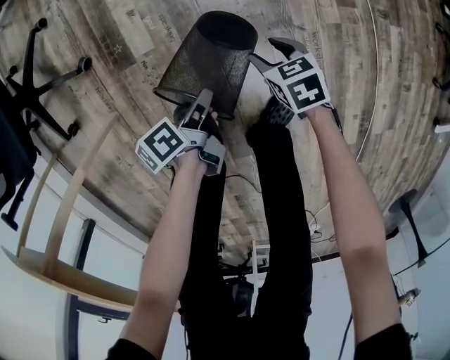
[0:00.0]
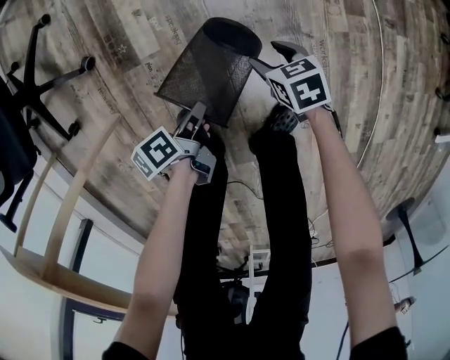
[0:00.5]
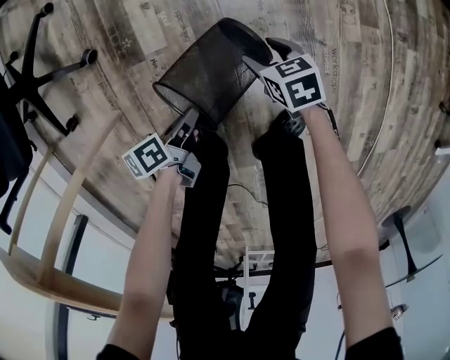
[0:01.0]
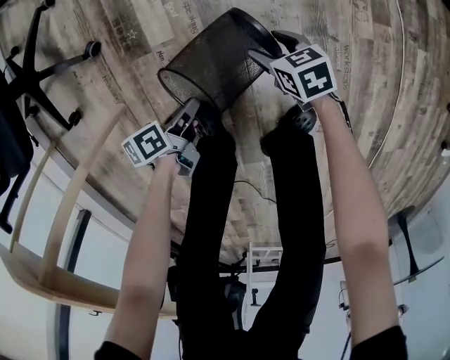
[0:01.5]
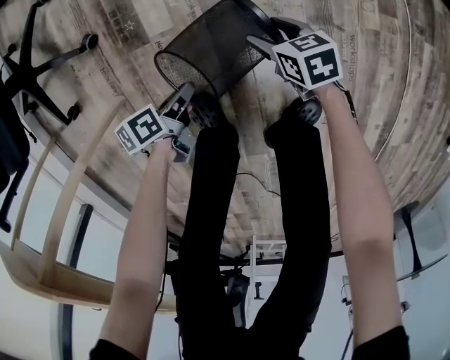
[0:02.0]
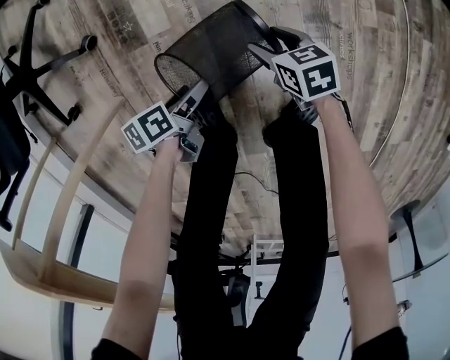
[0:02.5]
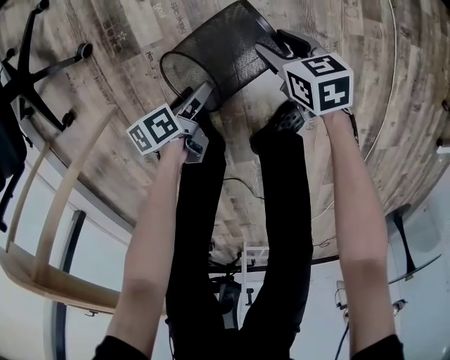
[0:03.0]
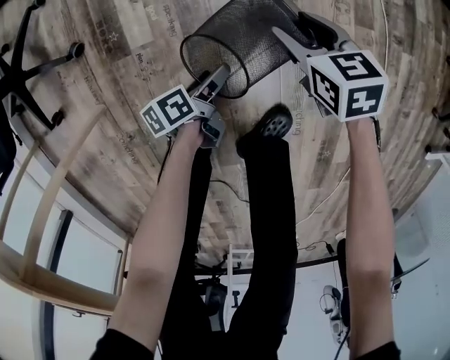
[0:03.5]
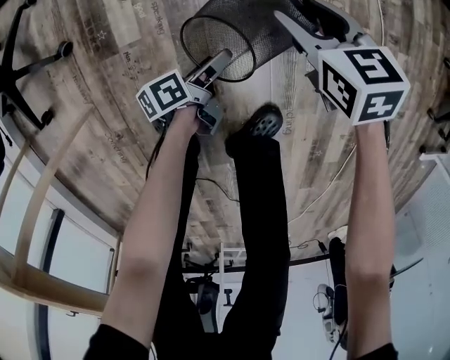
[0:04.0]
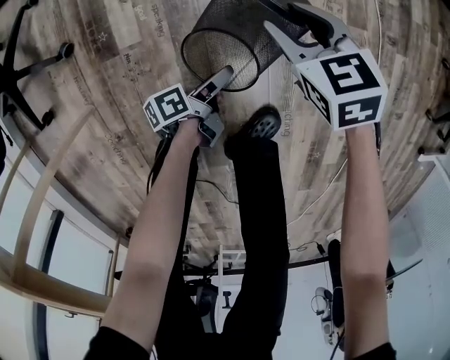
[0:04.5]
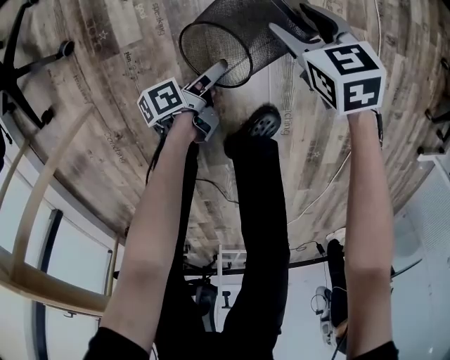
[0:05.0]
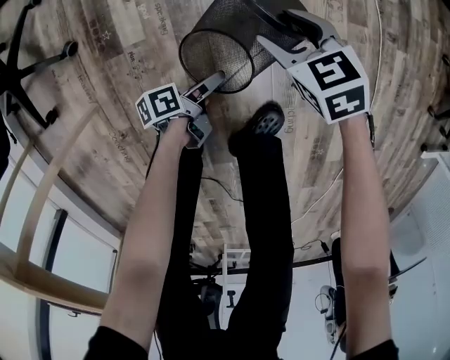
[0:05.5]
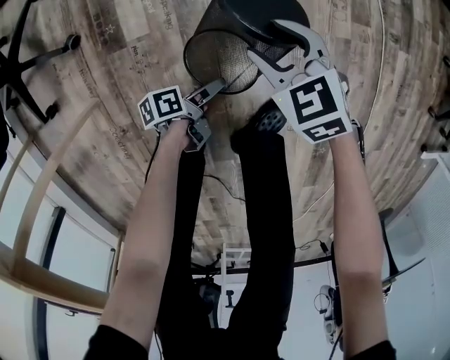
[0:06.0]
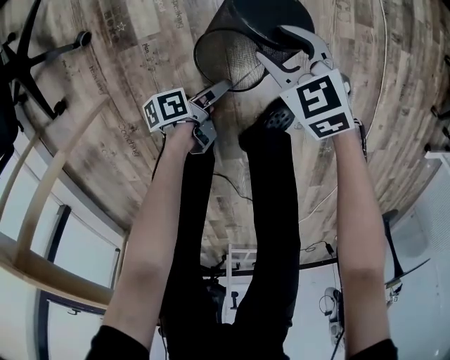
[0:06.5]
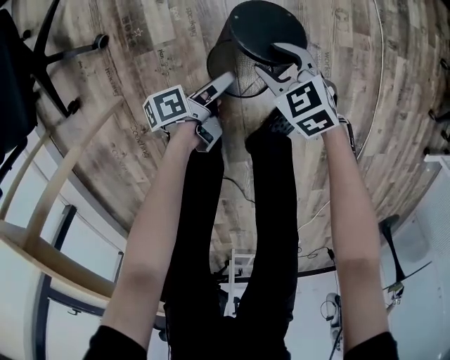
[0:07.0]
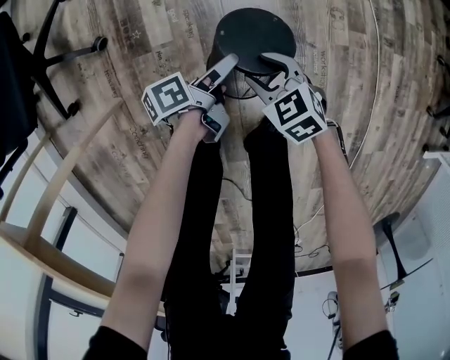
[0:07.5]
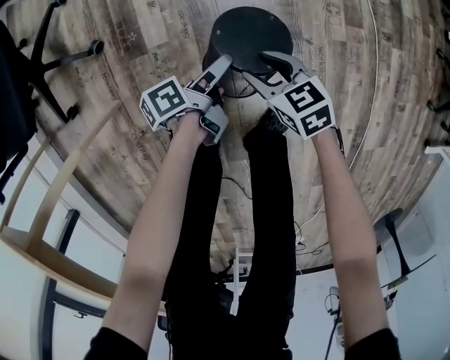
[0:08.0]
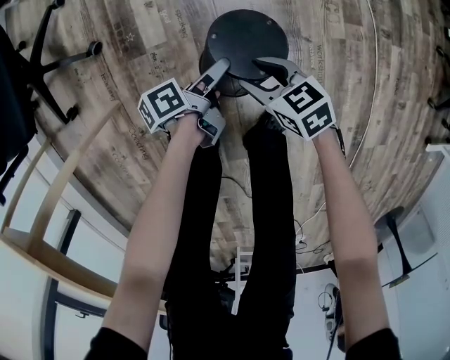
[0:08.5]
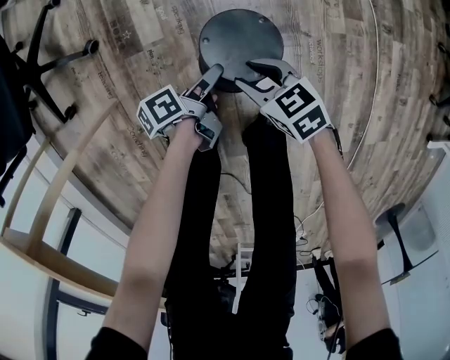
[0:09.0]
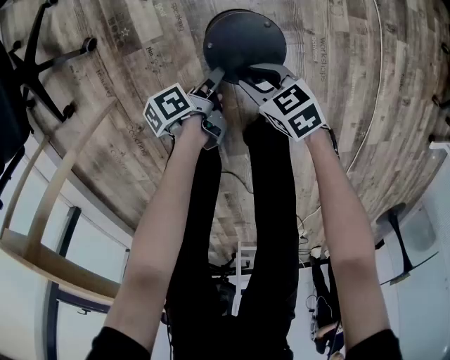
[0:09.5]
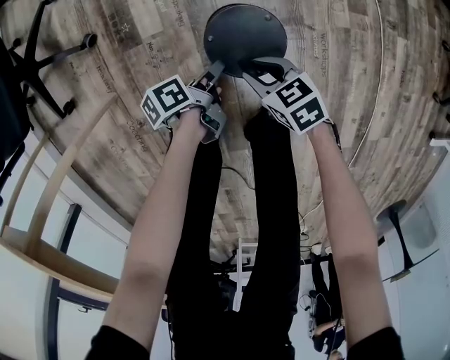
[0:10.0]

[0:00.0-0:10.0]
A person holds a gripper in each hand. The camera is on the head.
0:00.0 to 0:02.0: The right gripper ends up some 10 cm from where it was.
0:02.0 to 0:04.0: The right gripper moves approximately 20 cm.
0:04.0 to 0:06.0: The right gripper changes place by some 10 cm, and swivels about 20 degrees.
0:06.0 to 0:08.0: The right gripper changes place by roughly 5 cm, and changes its angle by some 20 degrees.
0:08.0 to 0:10.0: The right gripper changes place by some 5 cm.

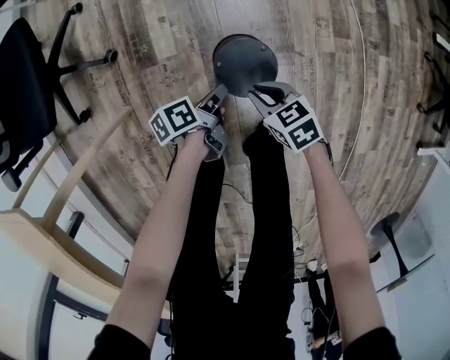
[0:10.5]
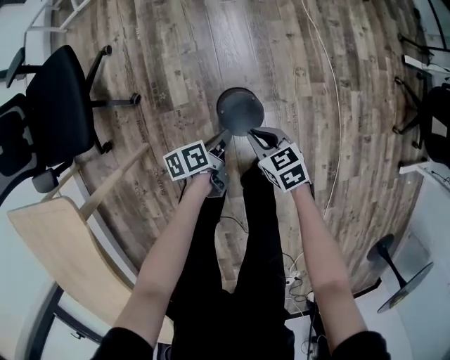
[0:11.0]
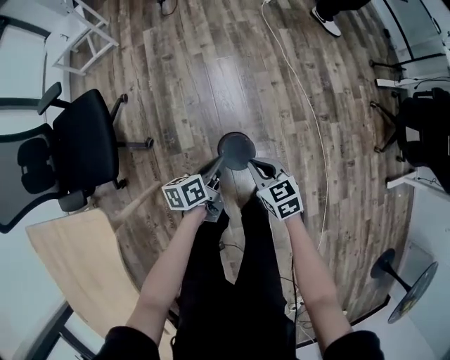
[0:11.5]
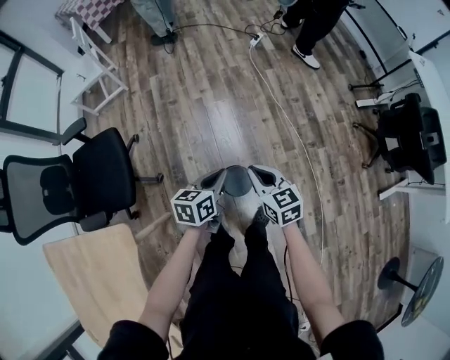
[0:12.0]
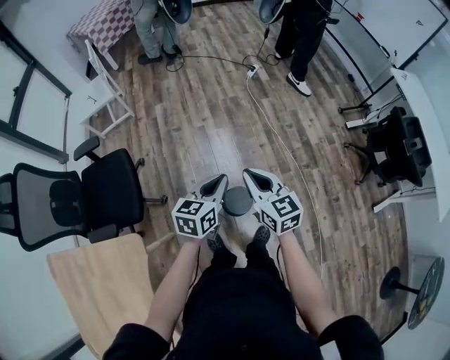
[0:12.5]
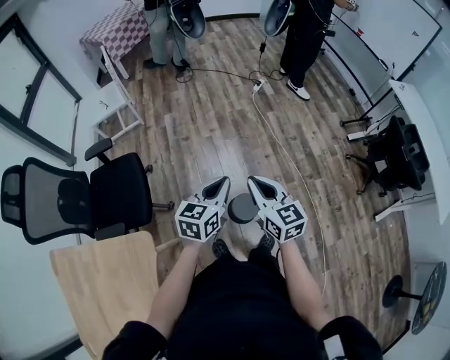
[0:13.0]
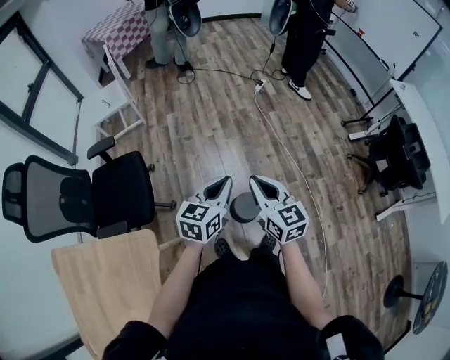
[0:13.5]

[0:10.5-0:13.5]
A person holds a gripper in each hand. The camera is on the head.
0:10.5 to 0:12.0: The right gripper heads upward, covering some 50 cm, and turns by about 40 degrees.
0:12.0 to 0:13.5: The right gripper shifts roughly 20 cm upward.

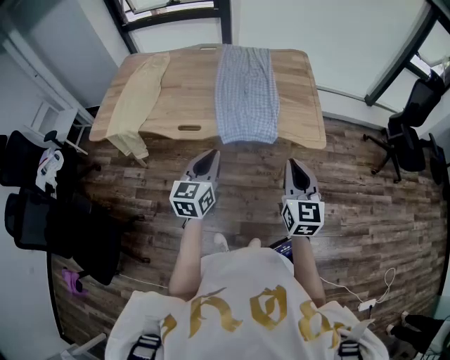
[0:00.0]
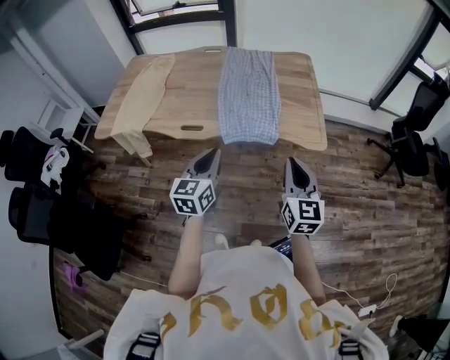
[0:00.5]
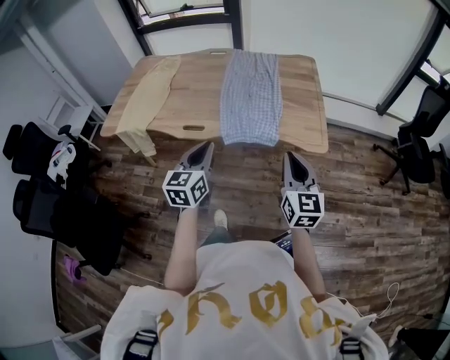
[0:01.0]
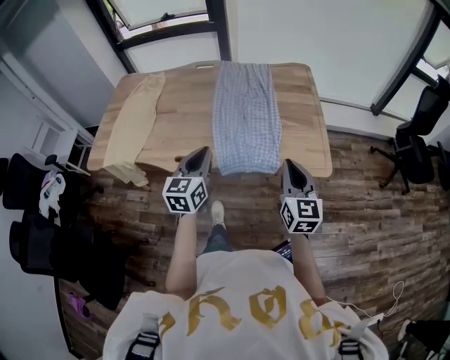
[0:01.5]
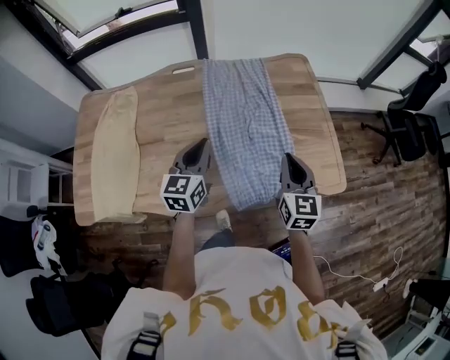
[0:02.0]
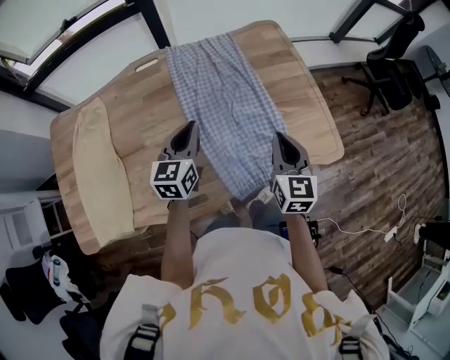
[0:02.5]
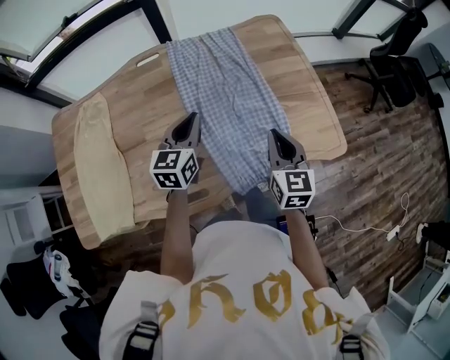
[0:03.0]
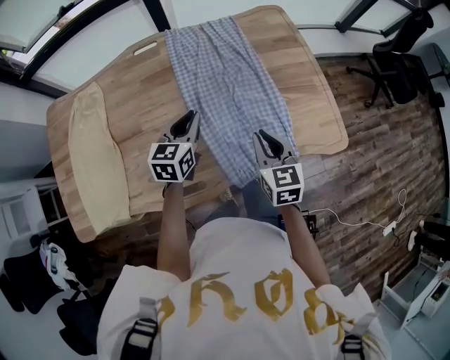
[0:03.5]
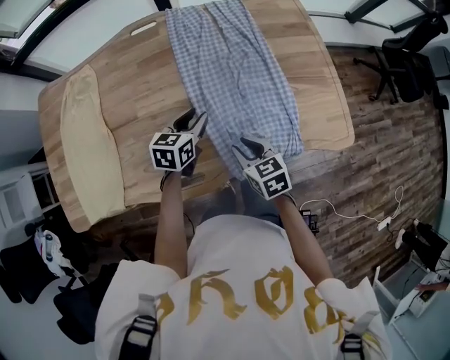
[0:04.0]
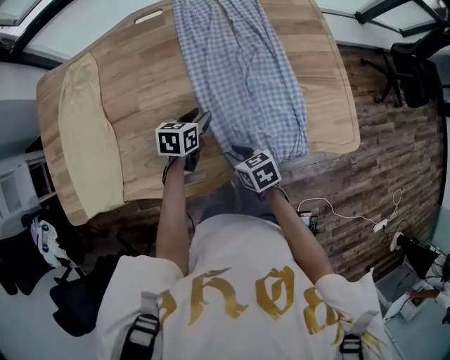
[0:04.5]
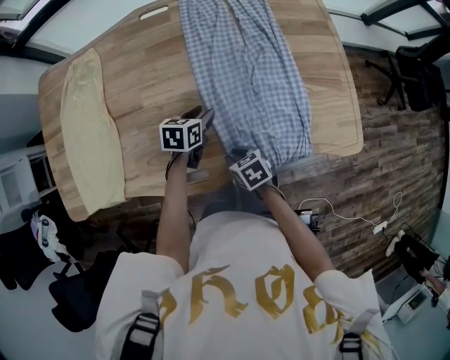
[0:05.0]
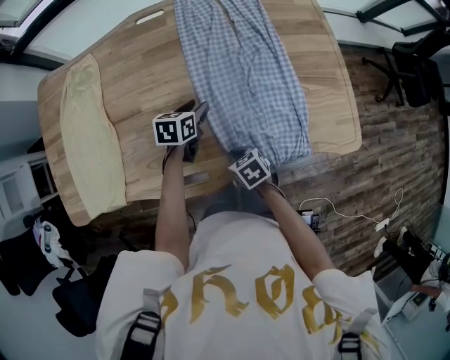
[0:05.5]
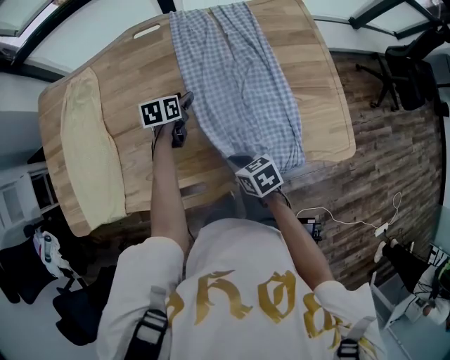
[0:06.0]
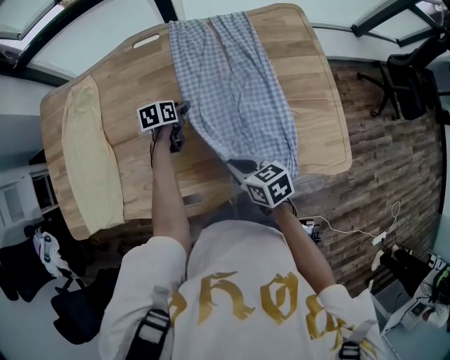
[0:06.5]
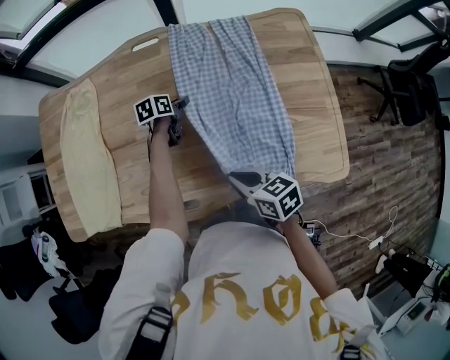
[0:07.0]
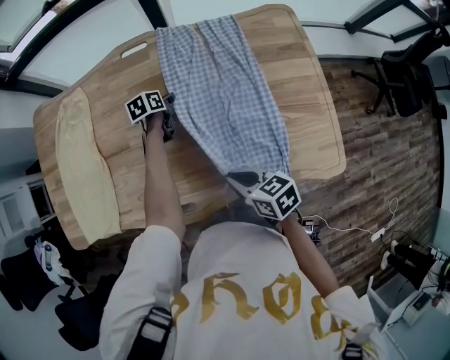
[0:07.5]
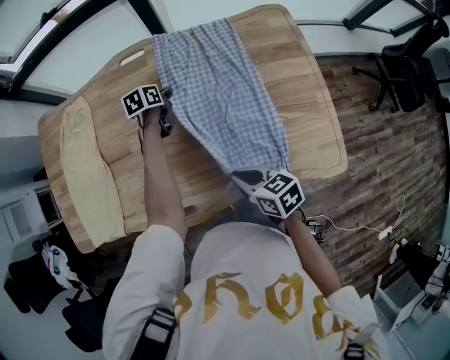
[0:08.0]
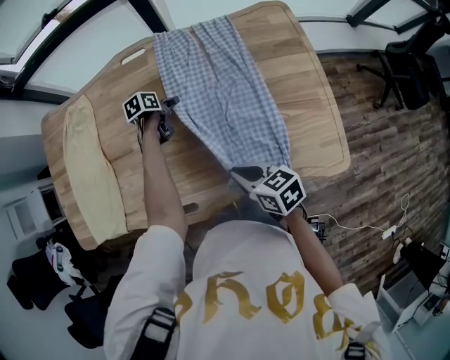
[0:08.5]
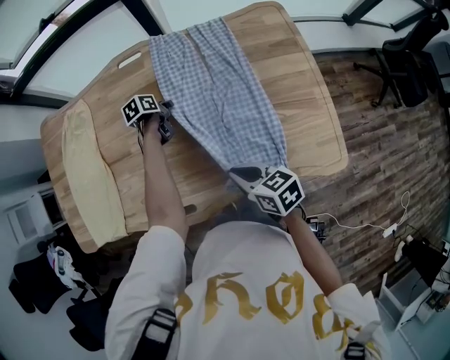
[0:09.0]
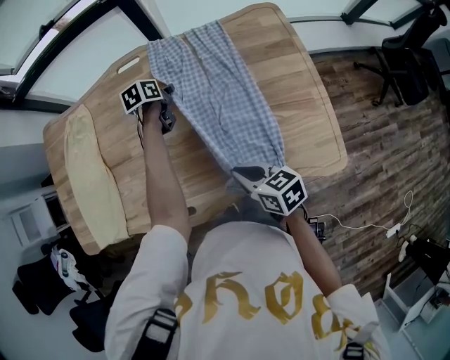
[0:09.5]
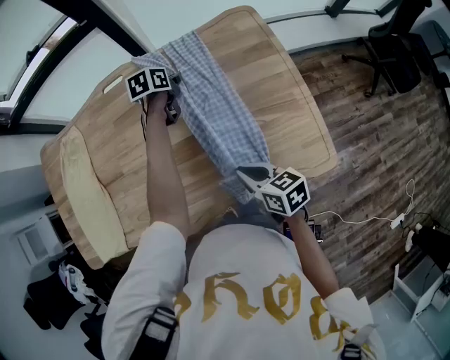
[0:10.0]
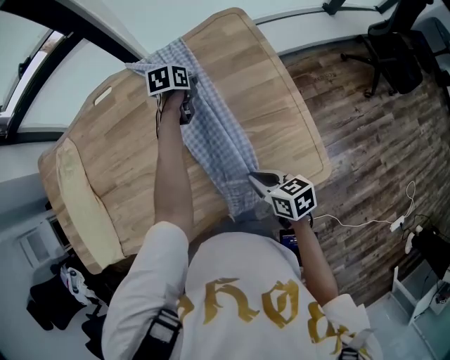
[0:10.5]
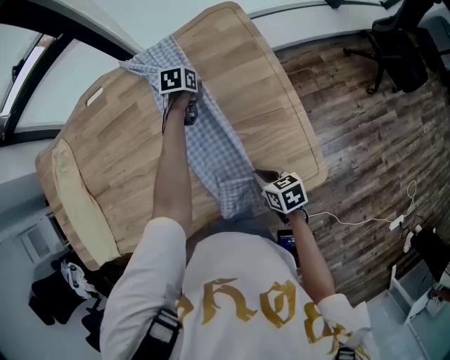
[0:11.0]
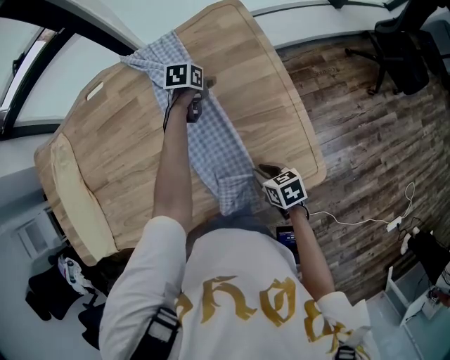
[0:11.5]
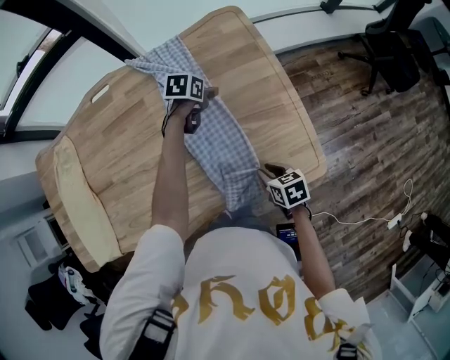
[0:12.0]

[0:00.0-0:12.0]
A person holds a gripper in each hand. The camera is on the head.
0:00.0 to 0:02.0: Both grippers travel together forward, roughly 40 cm.
0:02.0 to 0:04.0: The right gripper heads downward and to the left, covering about 20 cm, and changes its angle by some 40 degrees, while the left gripper moves downward, some 20 cm, rotates some 30 degrees, and opens up.
0:04.0 to 0:06.0: The left gripper heads forward and downward, covering roughly 15 cm.
0:06.0 to 0:08.0: The left gripper moves forward, about 10 cm, and closes; the right gripper shifts some 10 cm upward and to the right.
0:08.0 to 0:10.0: The left gripper is displaced to the right by some 15 cm, and opens, then closes again, while the right gripper is displaced to the right by about 10 cm.
0:10.0 to 0:12.0: Both grippers move to the right and downward, some 15 cm. The left gripper turns by roughly 20 degrees, and opens up, while the right gripper changes its angle by approximately 20 degrees.

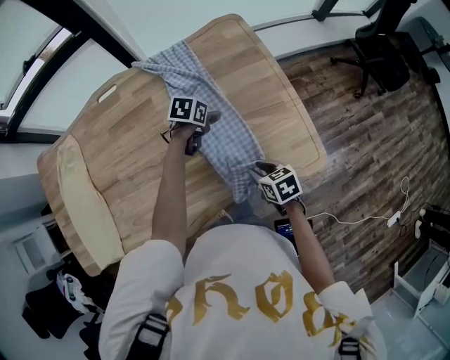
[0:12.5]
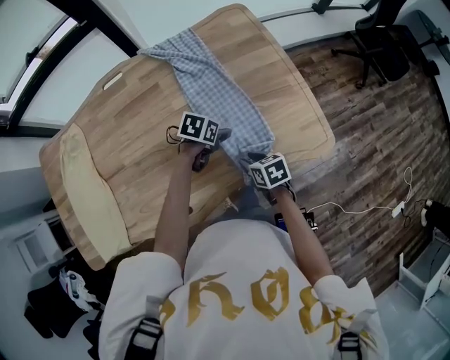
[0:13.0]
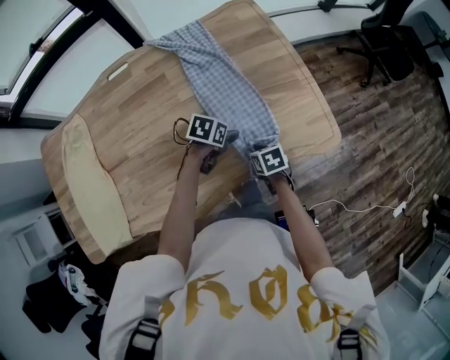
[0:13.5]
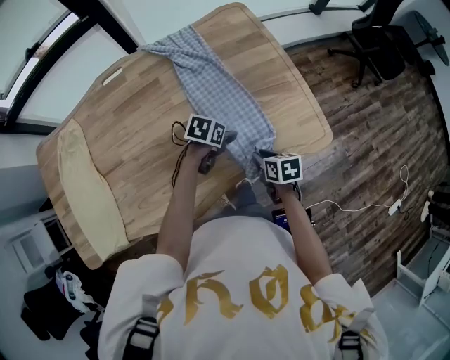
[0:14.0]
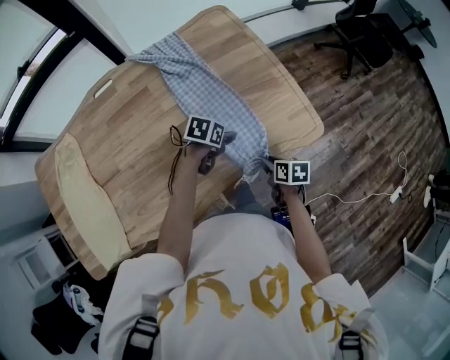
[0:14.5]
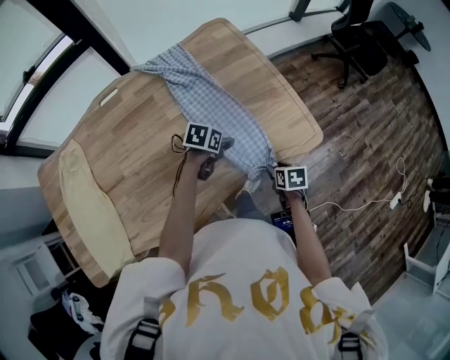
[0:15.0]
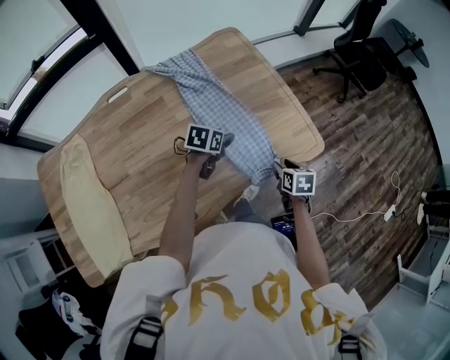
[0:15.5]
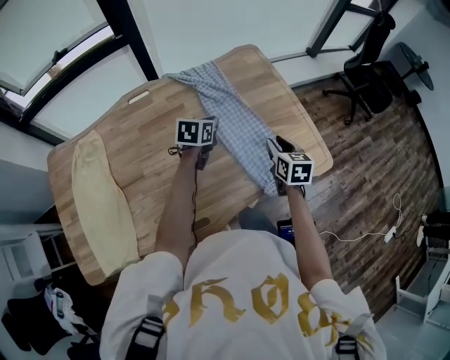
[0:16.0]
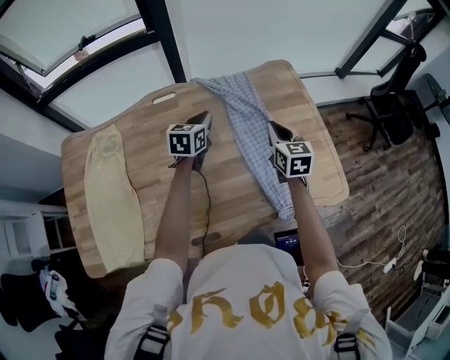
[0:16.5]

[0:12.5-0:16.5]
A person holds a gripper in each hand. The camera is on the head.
0:12.5 to 0:14.5: The left gripper shifts about 15 cm backward and to the right. The right gripper goes some 10 cm backward and to the right, and rotates some 30 degrees.
0:14.5 to 0:16.5: The right gripper changes place by roughly 35 cm, and turns by approximately 50 degrees. Meanwhile the left gripper changes place by about 35 cm, swivels some 50 degrees, and closes its fingers.
